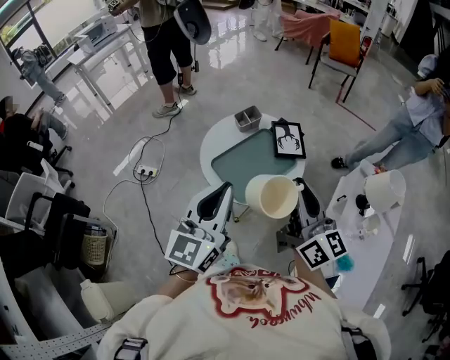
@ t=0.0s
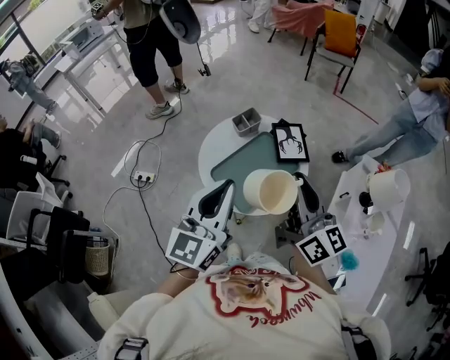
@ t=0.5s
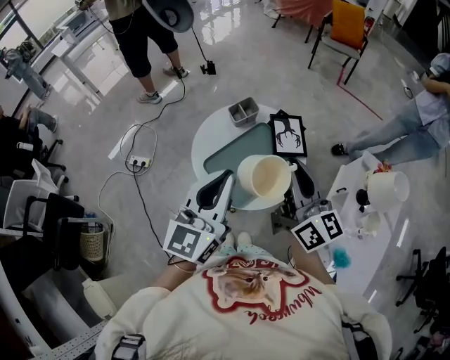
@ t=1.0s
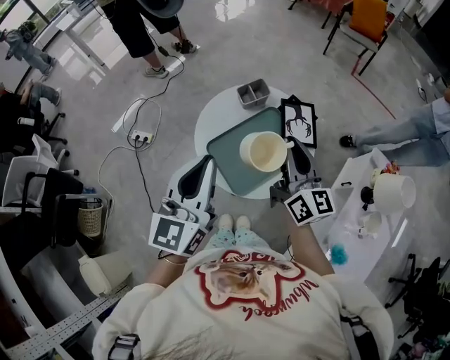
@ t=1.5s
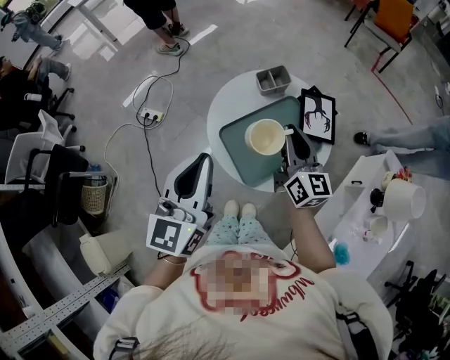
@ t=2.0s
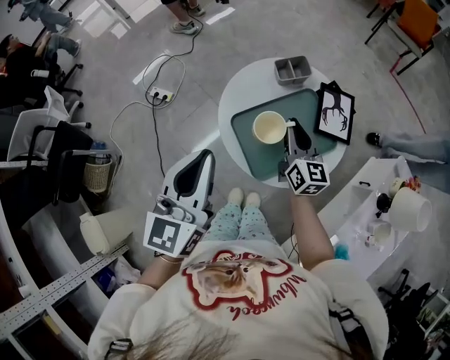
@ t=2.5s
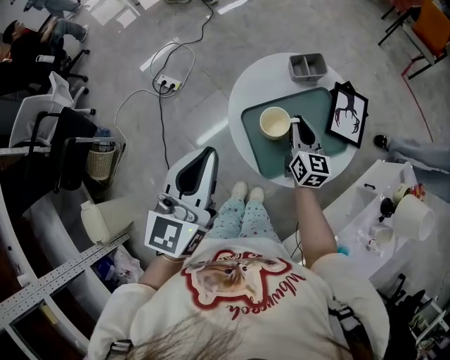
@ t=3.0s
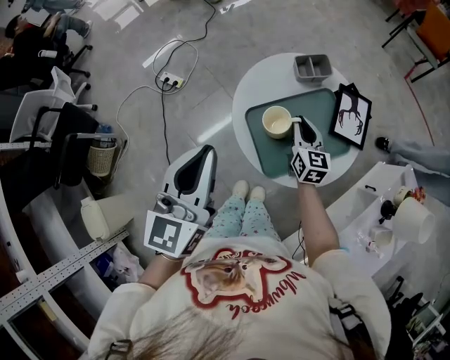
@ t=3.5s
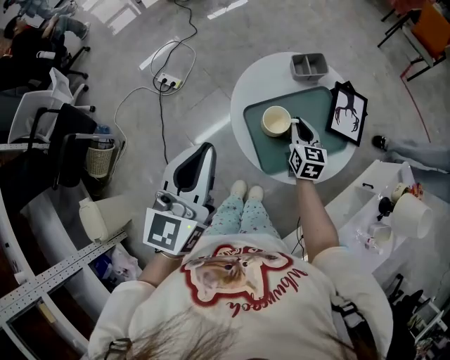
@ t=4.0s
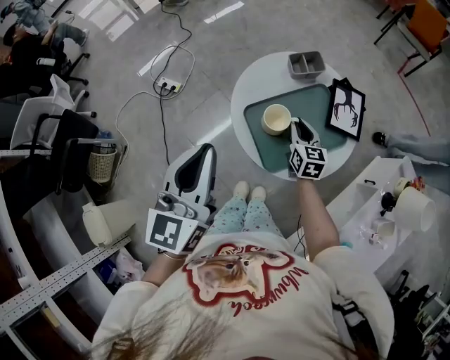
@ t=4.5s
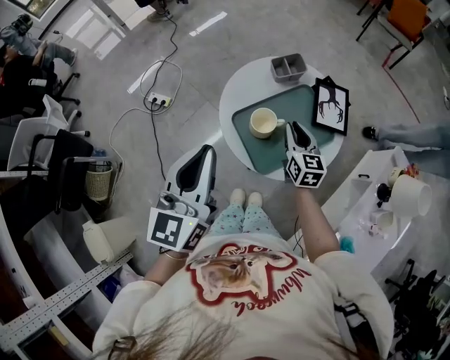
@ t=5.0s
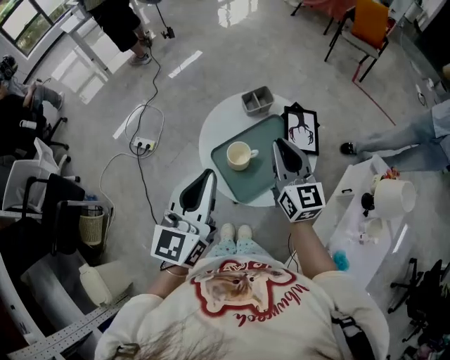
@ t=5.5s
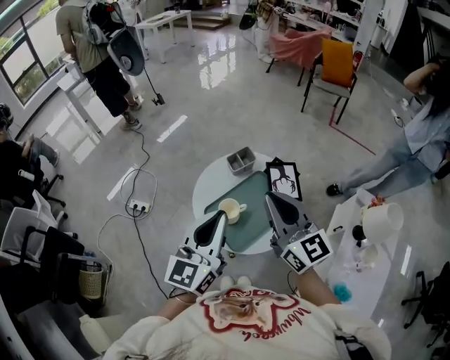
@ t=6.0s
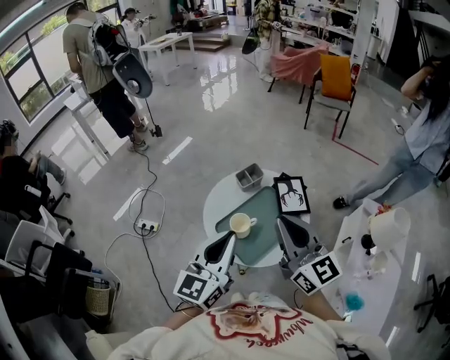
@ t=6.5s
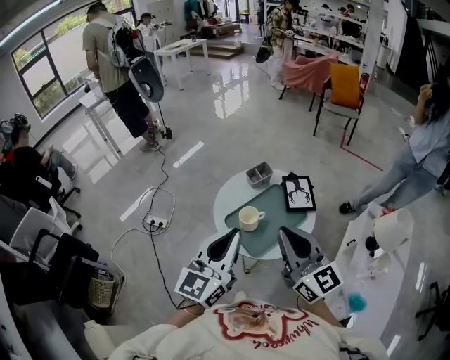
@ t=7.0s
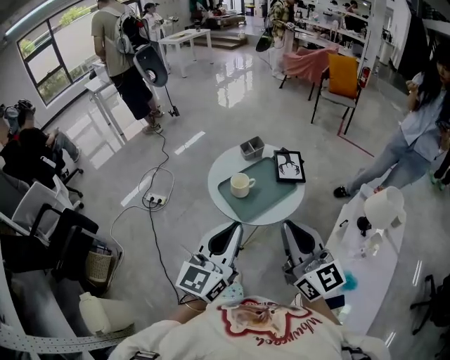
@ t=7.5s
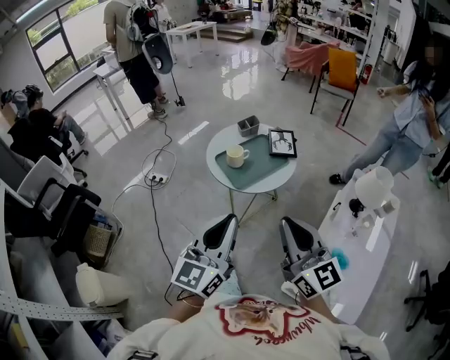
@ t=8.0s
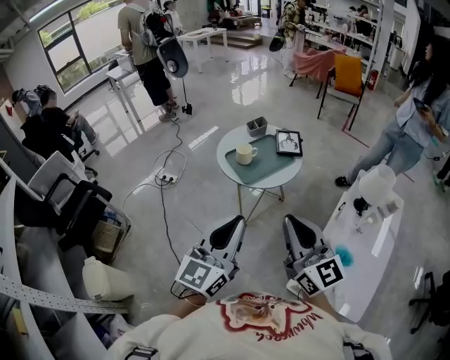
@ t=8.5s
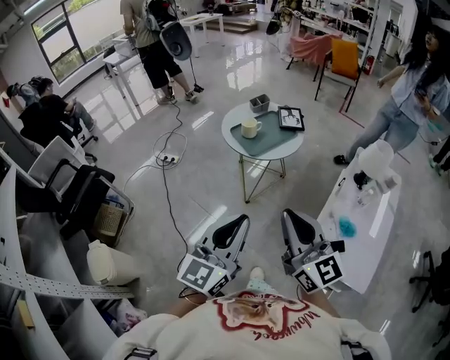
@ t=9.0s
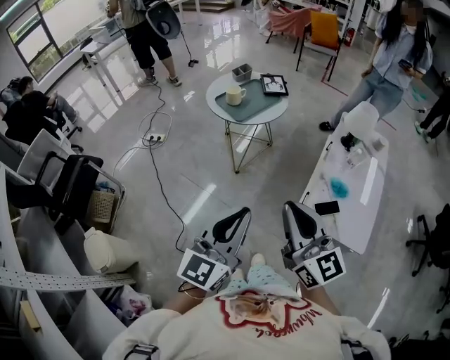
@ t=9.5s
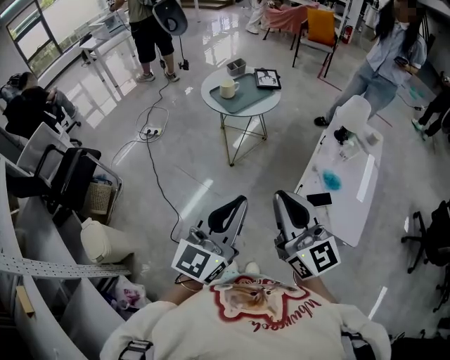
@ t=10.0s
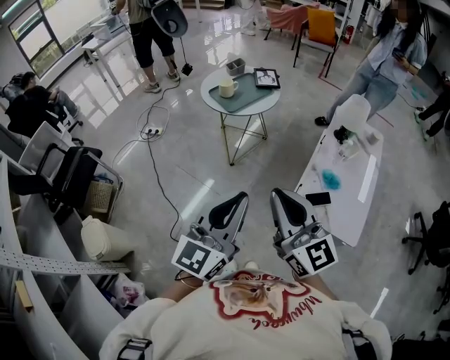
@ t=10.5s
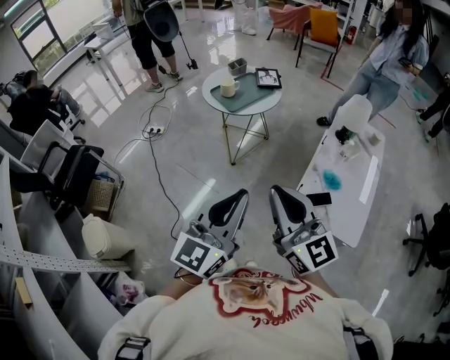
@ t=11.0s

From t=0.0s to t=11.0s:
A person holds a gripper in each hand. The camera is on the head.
From t=0.0s to t=2.0s: The right gripper is displaced forward and downward by about 25 cm. Meanwhile the left gripper is displaced forward, to the left and downward by some 15 cm.
From t=2.0s to t=3.5s: The left gripper shifts by roughly 5 cm. Meanwhile the right gripper goes some 15 cm downward, and changes its angle by about 20 degrees.
From t=3.5s to t=5.5s: The right gripper goes approximately 20 cm upward, while the left gripper heads to the right, covering some 5 cm.
From t=5.5s to t=7.5s: The left gripper moves backward, approximately 20 cm, while the right gripper goes roughly 30 cm backward and upward.
From t=7.5s to t=9.0s: The grippers both shift backward by approximately 30 cm.
From t=9.0s to t=11.0s: The right gripper goes some 15 cm backward; the left gripper is displaced backward and to the right by roughly 15 cm.

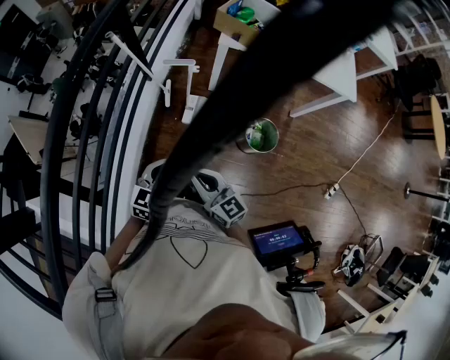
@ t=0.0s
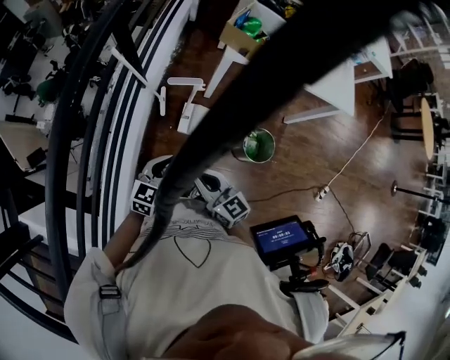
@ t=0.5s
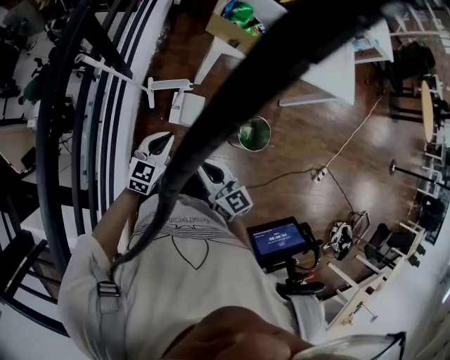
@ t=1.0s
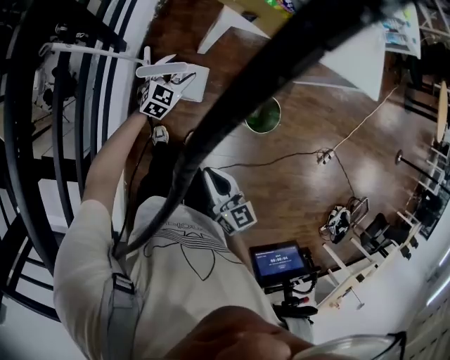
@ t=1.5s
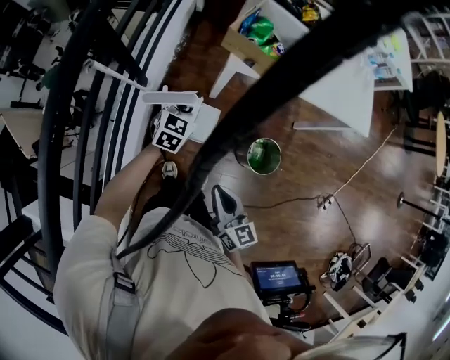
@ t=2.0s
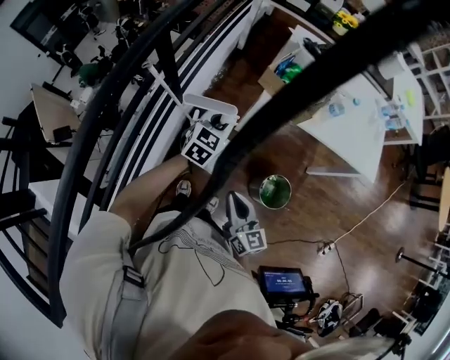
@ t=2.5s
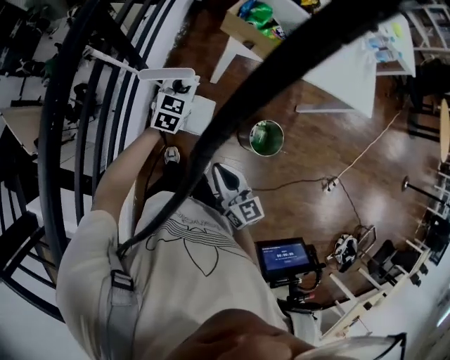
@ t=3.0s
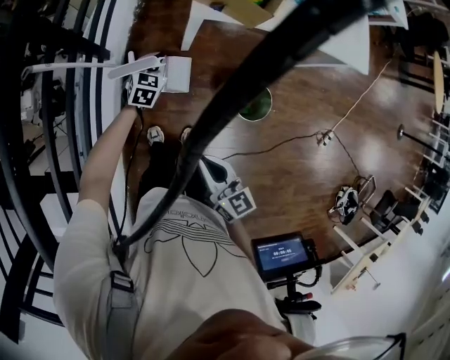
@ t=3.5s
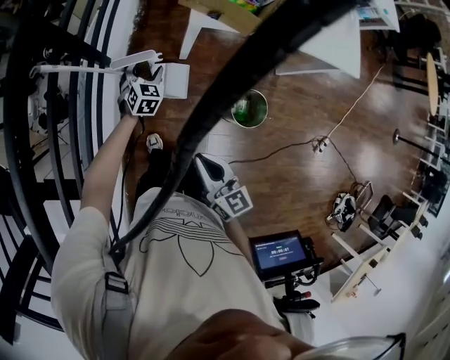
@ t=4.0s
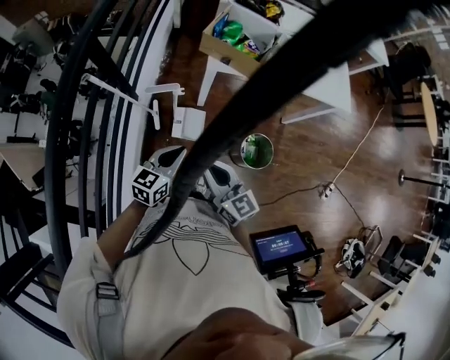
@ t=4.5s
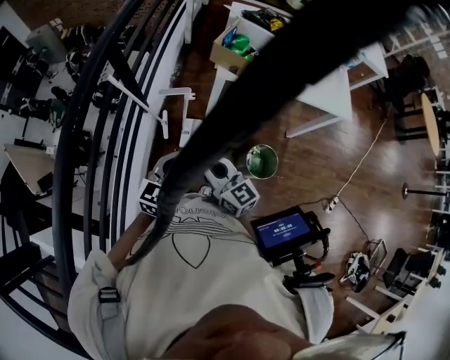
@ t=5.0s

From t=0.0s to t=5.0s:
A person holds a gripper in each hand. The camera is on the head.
From t=0.0s to t=2.5s: The right gripper moves forward, some 20 cm. The left gripper moves forward, roughly 40 cm, and opens, then closes again.
From t=2.5s to t=5.0s: The left gripper shifts approximately 20 cm backward, and opens and closes again; the right gripper shifts by roughly 5 cm.

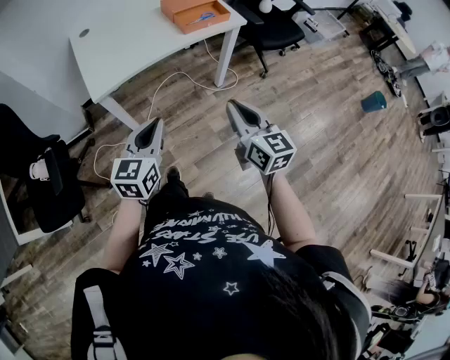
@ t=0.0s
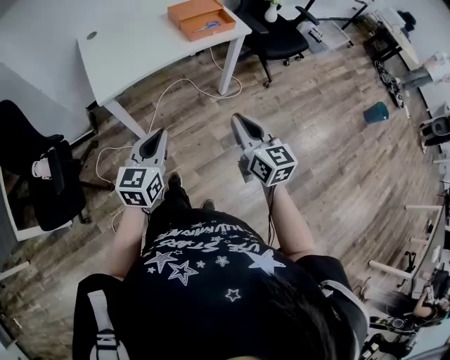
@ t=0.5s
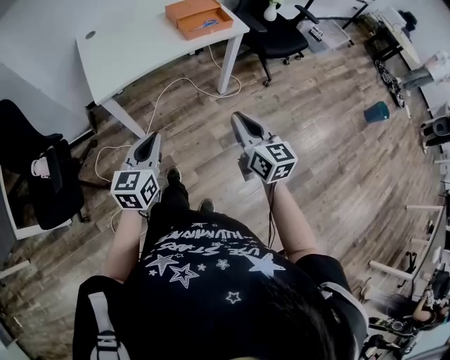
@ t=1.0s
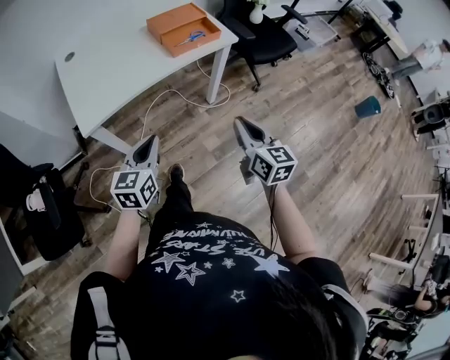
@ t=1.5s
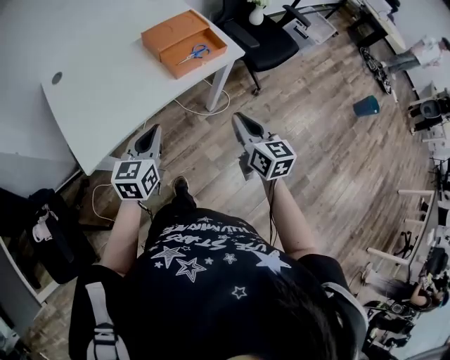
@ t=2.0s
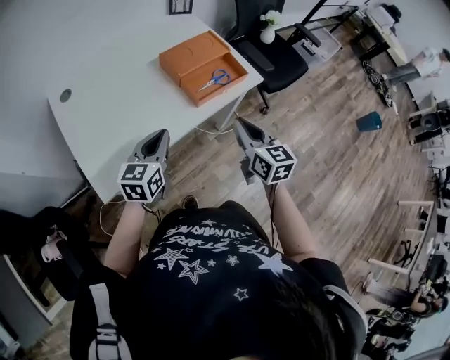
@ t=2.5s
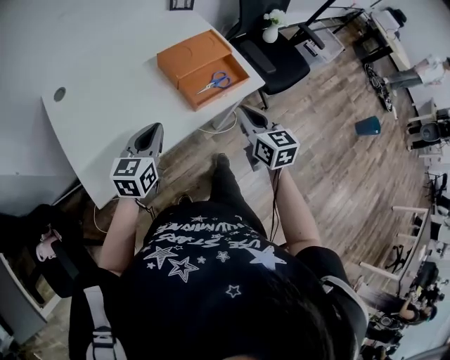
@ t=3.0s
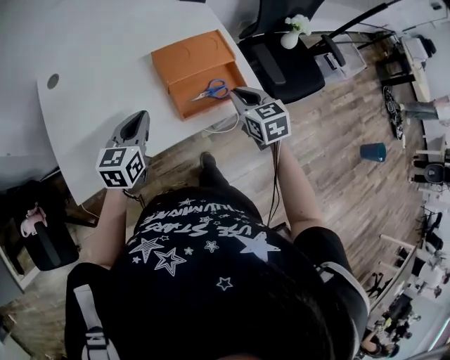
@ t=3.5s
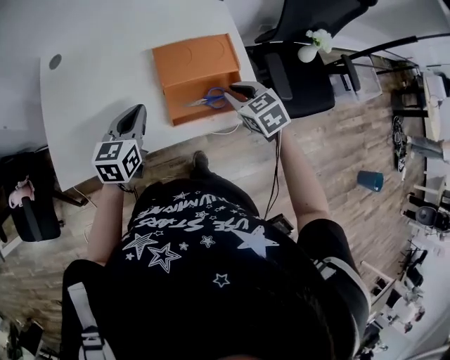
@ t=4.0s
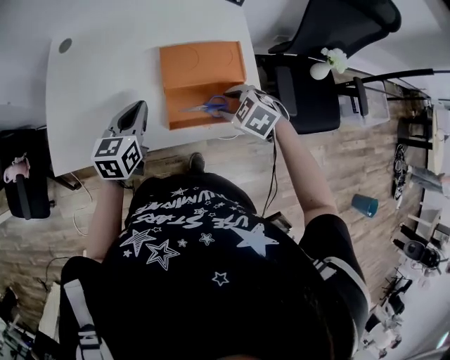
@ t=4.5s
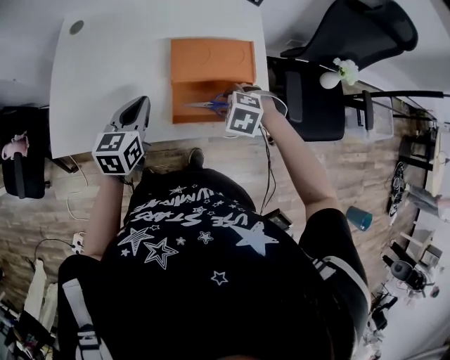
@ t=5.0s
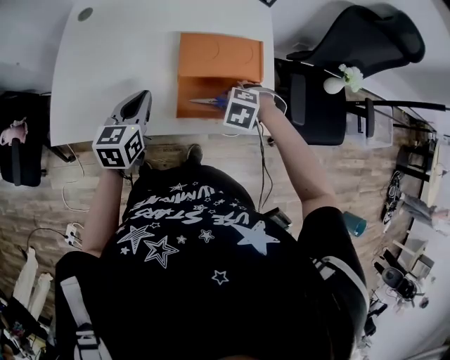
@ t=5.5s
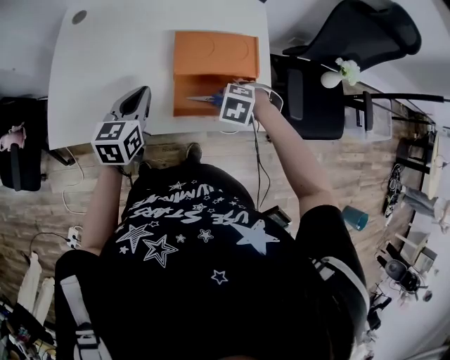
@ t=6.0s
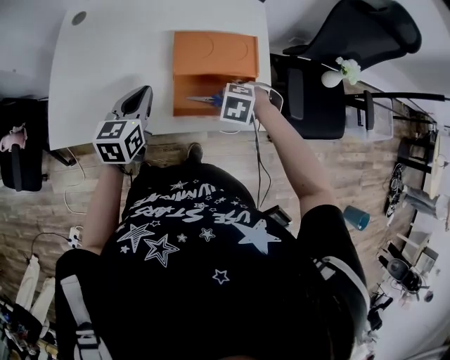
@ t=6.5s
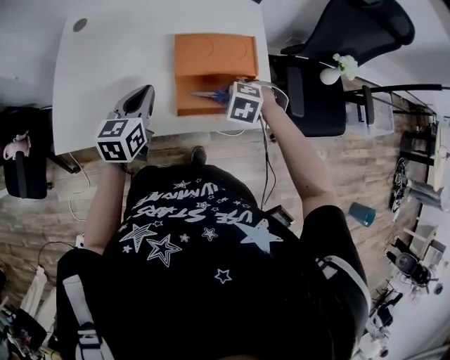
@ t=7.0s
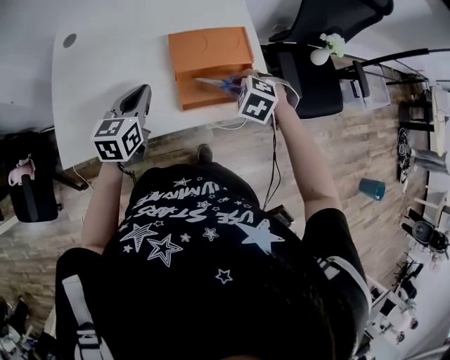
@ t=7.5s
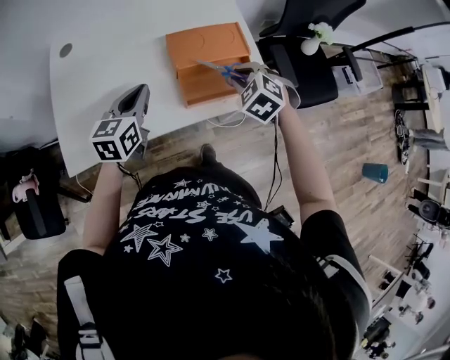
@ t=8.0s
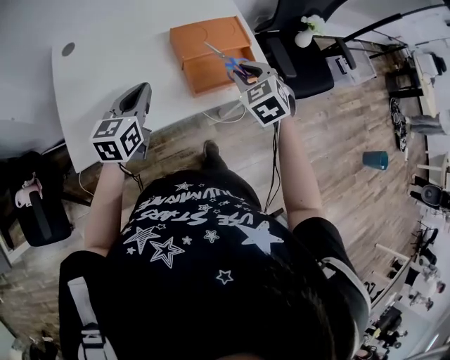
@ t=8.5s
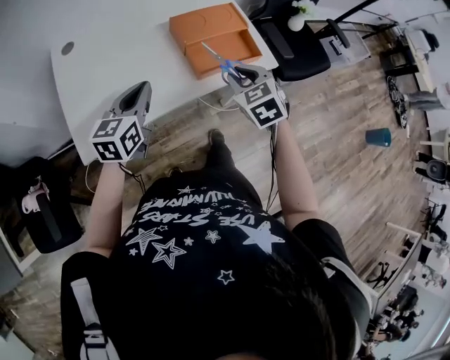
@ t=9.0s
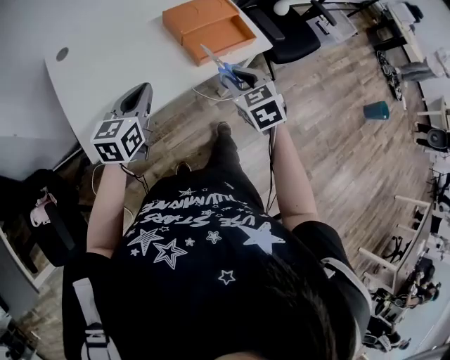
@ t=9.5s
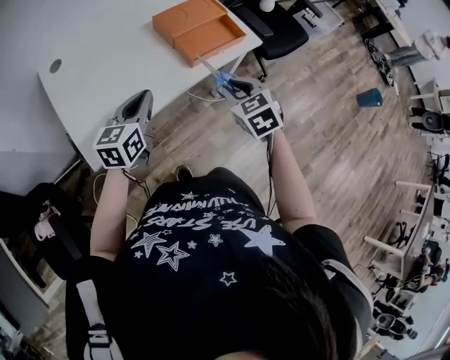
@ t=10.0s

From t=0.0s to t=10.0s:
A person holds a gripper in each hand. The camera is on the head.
From t=0.0s to t=2.0s: The two grippers go roughly 30 cm forward.
From t=2.0s to t=4.0s: The left gripper moves roughly 35 cm, and swivels roughly 20 degrees. Meanwhile the right gripper ends up about 40 cm from where it was, and turns by roughly 60 degrees.
From t=4.0s to t=6.0s: The right gripper travels downward by roughly 10 cm, angles its fingers downward, by about 30 degrees, and opens up.
From t=6.0s to t=8.0s: The right gripper travels upward by roughly 10 cm, and rotates about 40 degrees. The left gripper changes place by approximately 5 cm.
From t=8.0s to t=10.0s: The left gripper goes roughly 15 cm backward, and changes its angle by some 20 degrees. The right gripper shifts some 25 cm backward, and rolls clockwise, seen from behind, by approximately 40 degrees.
